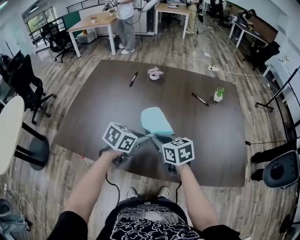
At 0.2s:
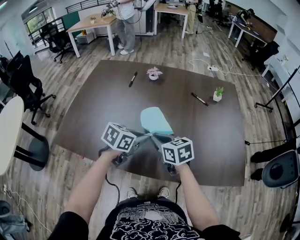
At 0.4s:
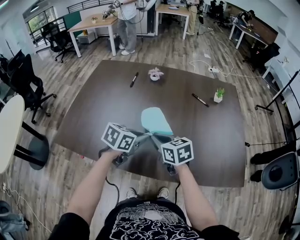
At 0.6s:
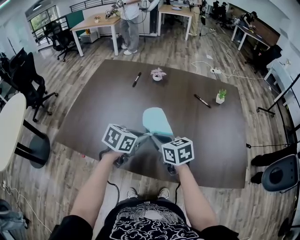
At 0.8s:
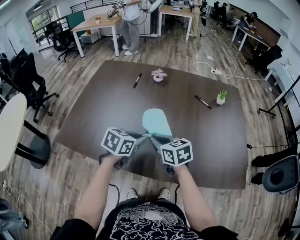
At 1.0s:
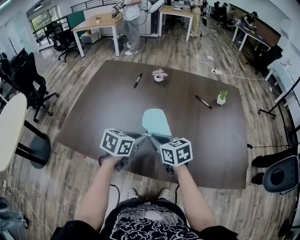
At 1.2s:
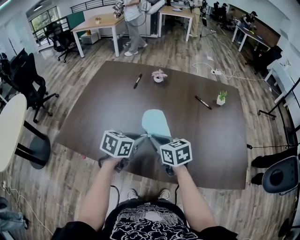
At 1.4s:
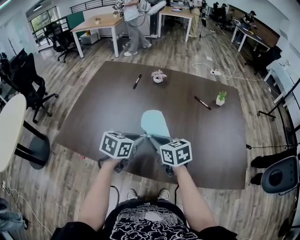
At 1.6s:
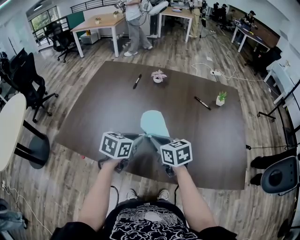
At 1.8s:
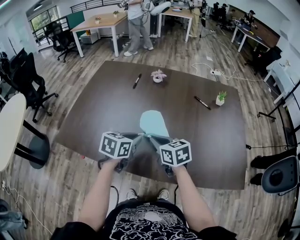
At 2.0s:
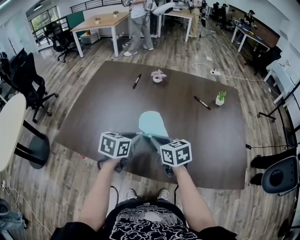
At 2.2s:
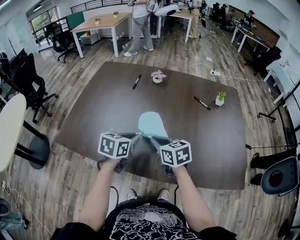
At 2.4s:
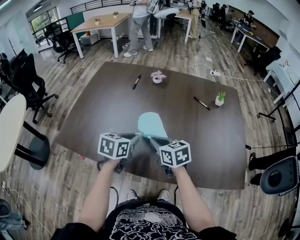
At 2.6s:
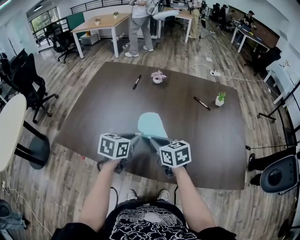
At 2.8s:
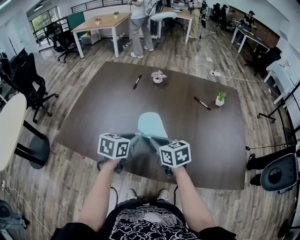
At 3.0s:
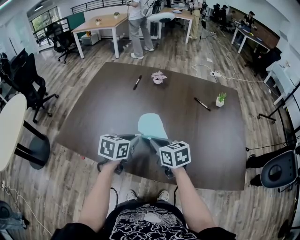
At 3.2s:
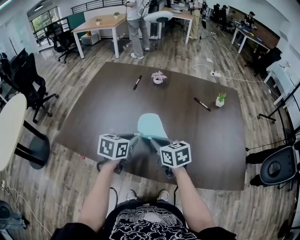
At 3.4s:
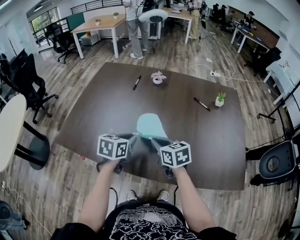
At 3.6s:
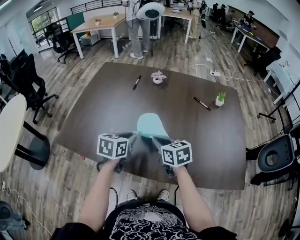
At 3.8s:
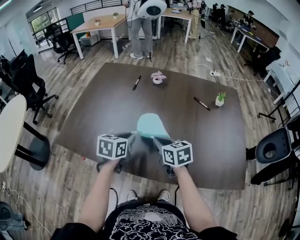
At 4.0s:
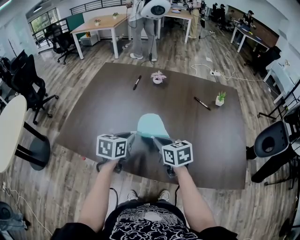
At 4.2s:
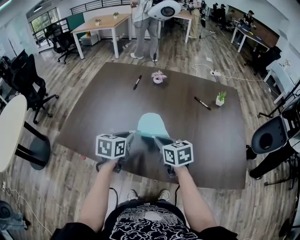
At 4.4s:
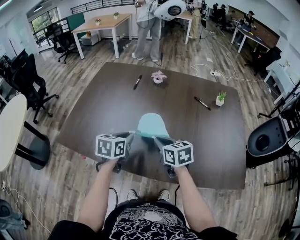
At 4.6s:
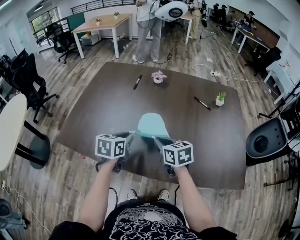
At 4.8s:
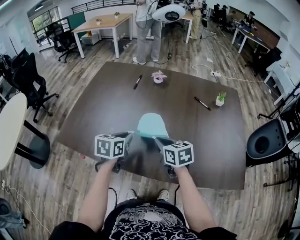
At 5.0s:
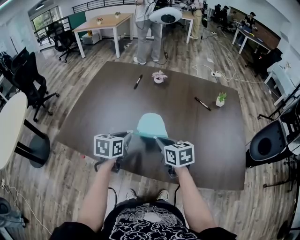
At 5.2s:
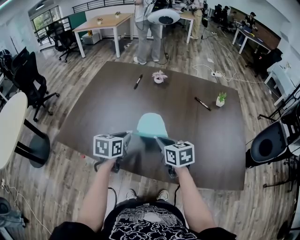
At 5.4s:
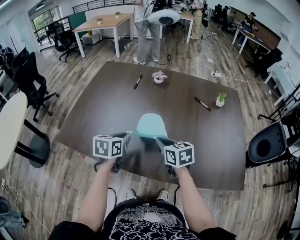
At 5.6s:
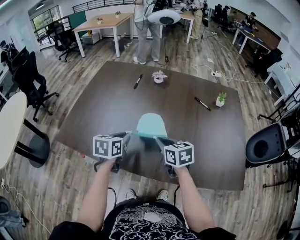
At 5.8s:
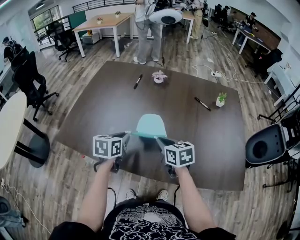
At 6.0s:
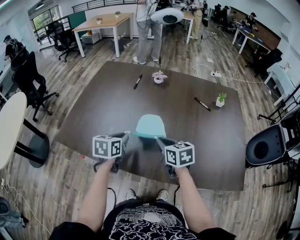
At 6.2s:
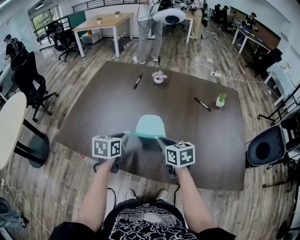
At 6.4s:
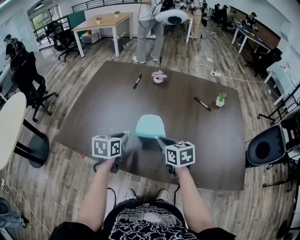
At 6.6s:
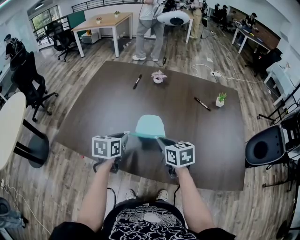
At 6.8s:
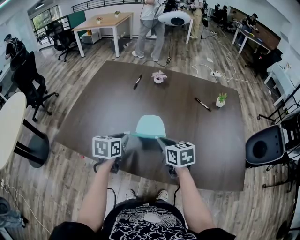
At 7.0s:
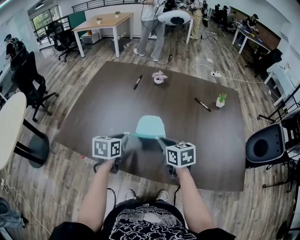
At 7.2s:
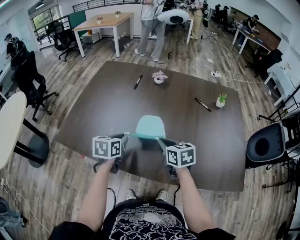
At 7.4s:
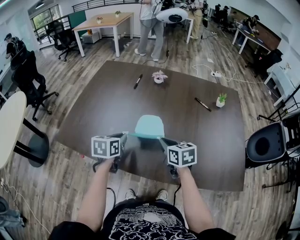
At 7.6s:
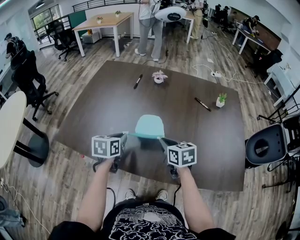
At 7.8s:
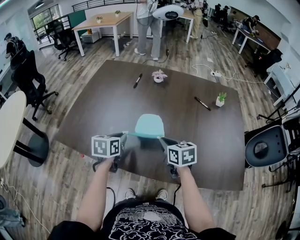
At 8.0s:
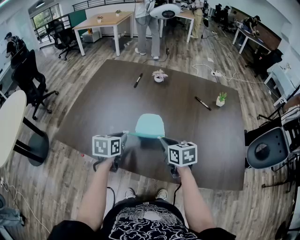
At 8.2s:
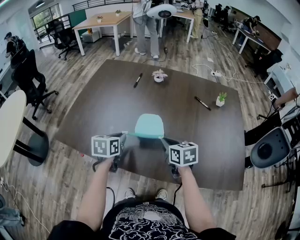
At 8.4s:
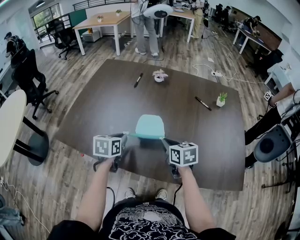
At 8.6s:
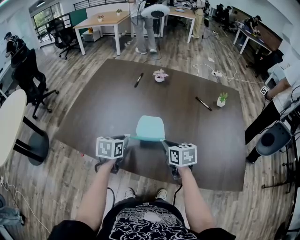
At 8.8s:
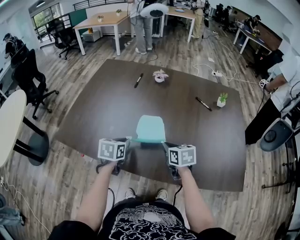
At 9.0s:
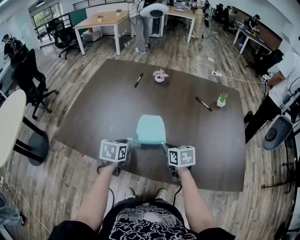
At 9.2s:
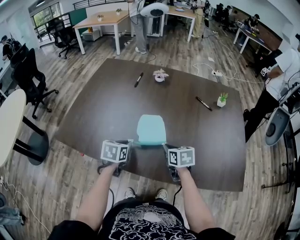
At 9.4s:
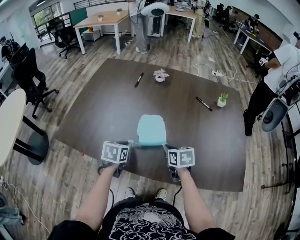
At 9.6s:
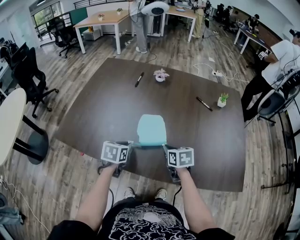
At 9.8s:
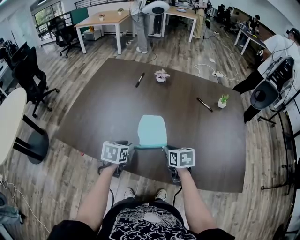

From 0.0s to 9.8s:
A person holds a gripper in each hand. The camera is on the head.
From 0.0s to 1.4s: The grippers stay close to where they were, moving slightly.
From 1.4s to 4.2s: The grippers move only a little.
From 4.2s to 8.4s: The grippers stay close to where they were, moving slightly.
From 8.4s to 9.8s: The left gripper moves about 5 cm, and opens. The right gripper is displaced downward by roughly 5 cm.

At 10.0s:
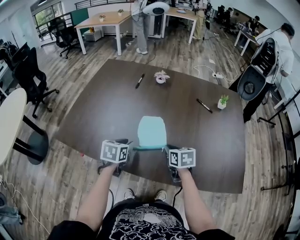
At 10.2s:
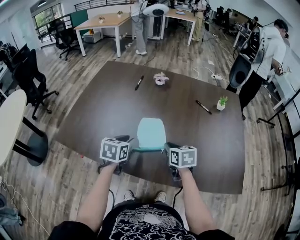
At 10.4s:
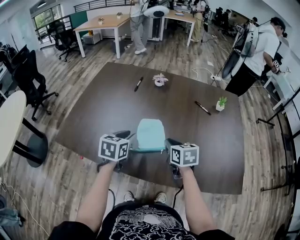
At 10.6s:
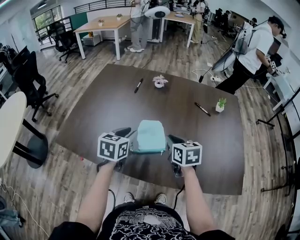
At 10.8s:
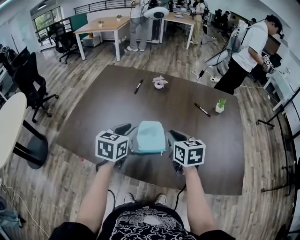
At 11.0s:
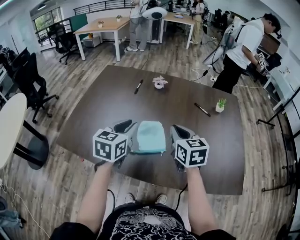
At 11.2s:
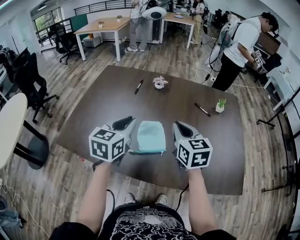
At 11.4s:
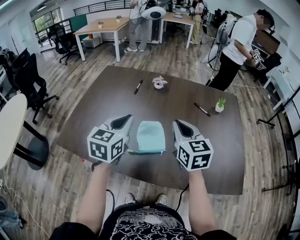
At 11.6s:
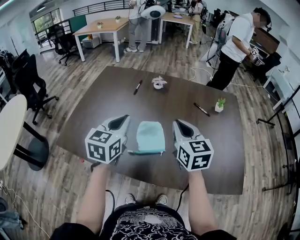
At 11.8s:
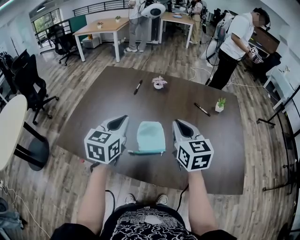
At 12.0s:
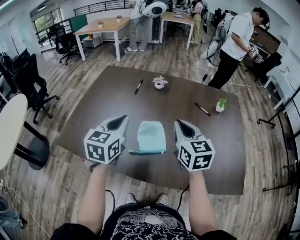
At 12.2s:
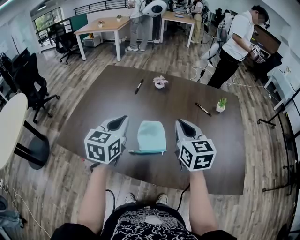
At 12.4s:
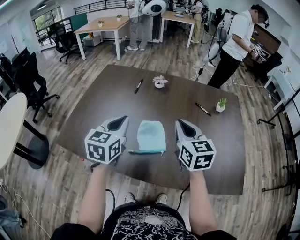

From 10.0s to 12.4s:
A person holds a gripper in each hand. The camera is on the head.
From 10.0s to 11.2s: Both grippers travel together upward, approximately 20 cm. The right gripper rotates roughly 30 degrees. Meanwhile the left gripper turns by some 30 degrees.
From 11.2s to 12.4s: The grippers stay close to where they were, moving slightly.

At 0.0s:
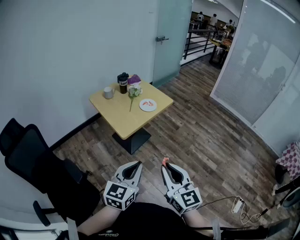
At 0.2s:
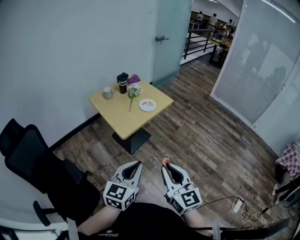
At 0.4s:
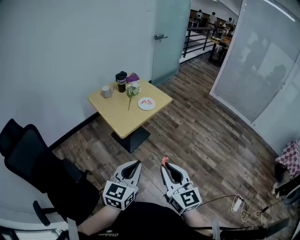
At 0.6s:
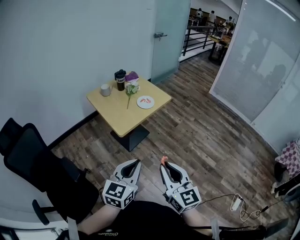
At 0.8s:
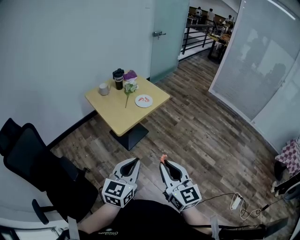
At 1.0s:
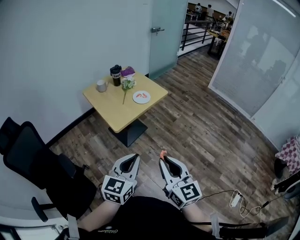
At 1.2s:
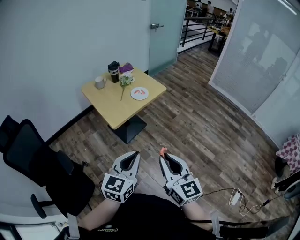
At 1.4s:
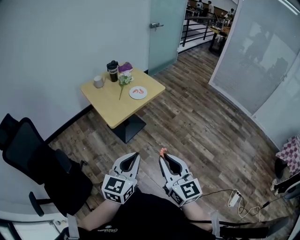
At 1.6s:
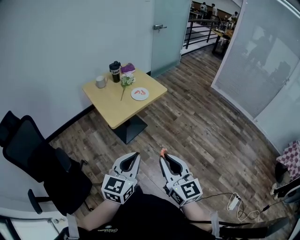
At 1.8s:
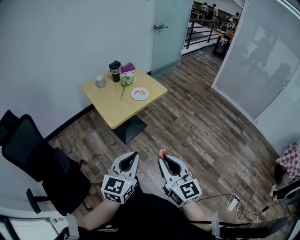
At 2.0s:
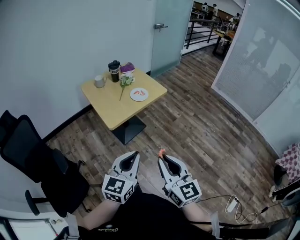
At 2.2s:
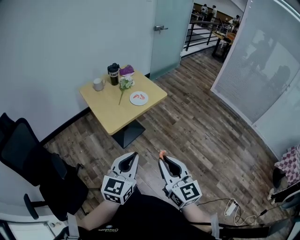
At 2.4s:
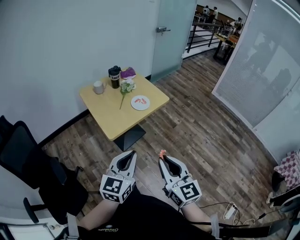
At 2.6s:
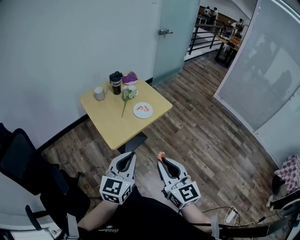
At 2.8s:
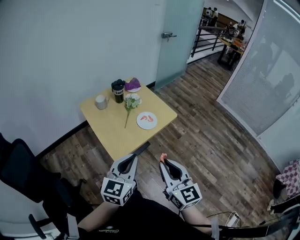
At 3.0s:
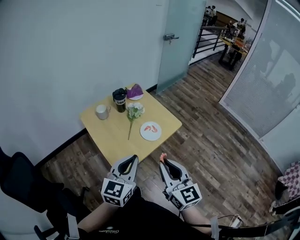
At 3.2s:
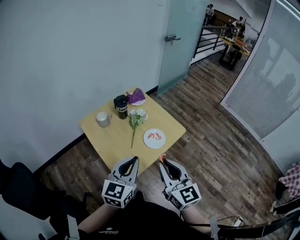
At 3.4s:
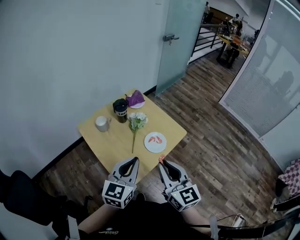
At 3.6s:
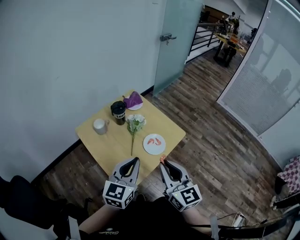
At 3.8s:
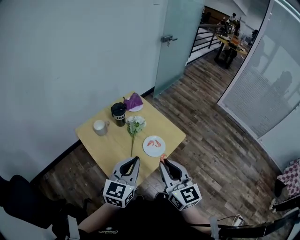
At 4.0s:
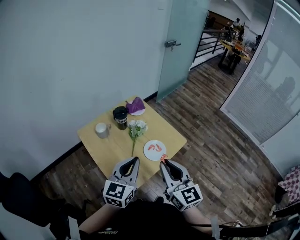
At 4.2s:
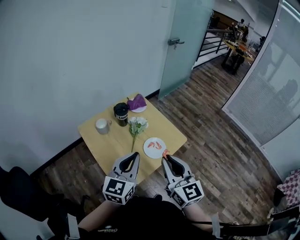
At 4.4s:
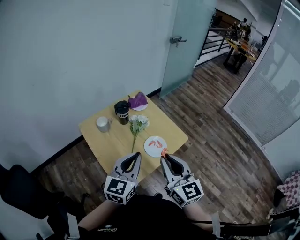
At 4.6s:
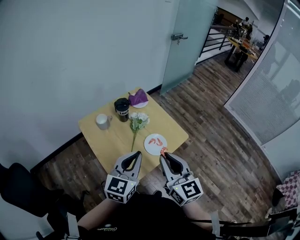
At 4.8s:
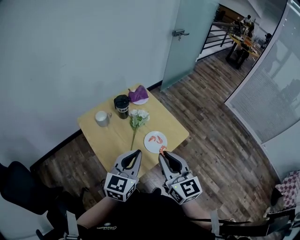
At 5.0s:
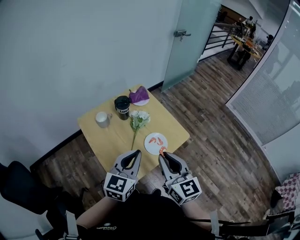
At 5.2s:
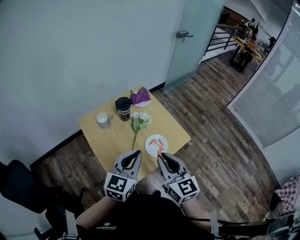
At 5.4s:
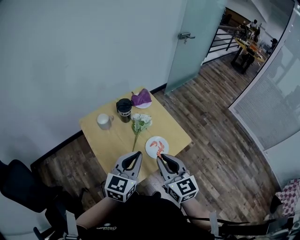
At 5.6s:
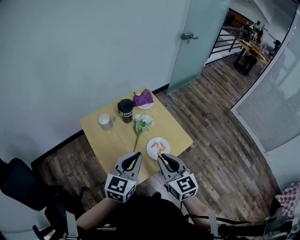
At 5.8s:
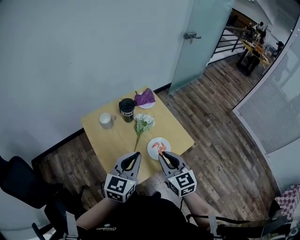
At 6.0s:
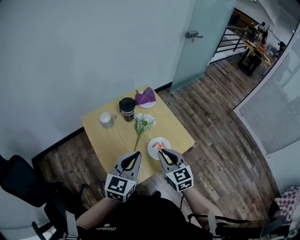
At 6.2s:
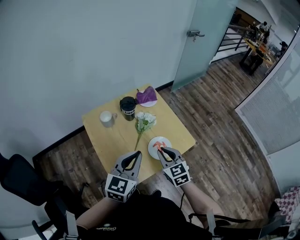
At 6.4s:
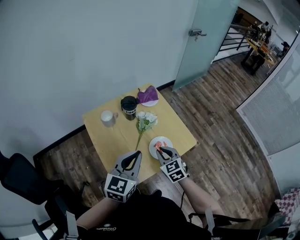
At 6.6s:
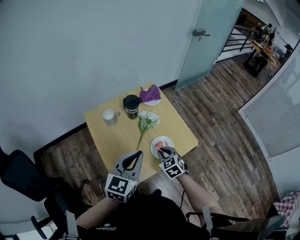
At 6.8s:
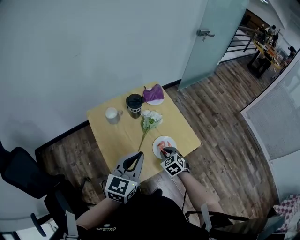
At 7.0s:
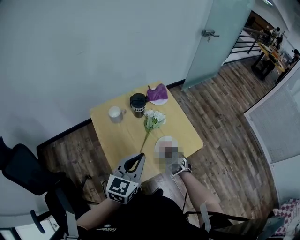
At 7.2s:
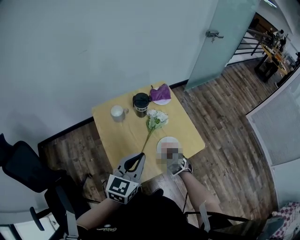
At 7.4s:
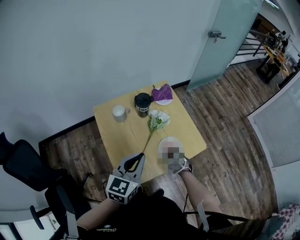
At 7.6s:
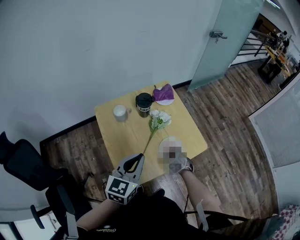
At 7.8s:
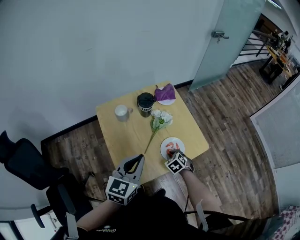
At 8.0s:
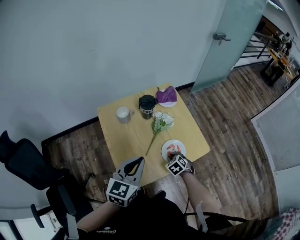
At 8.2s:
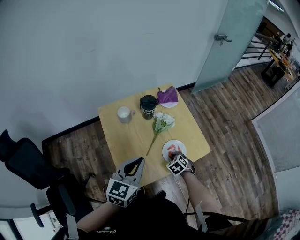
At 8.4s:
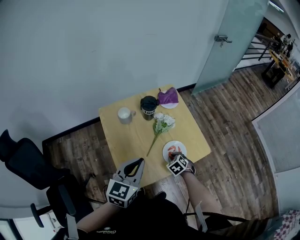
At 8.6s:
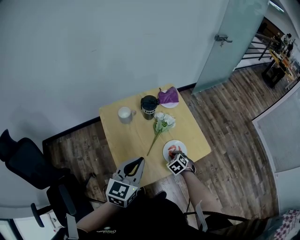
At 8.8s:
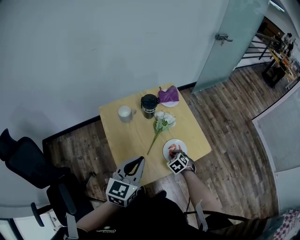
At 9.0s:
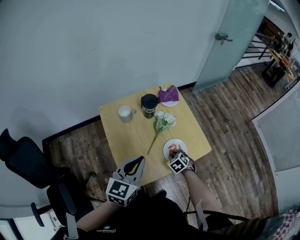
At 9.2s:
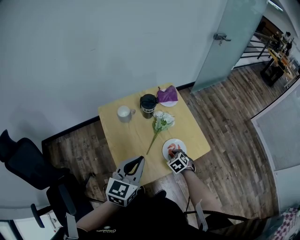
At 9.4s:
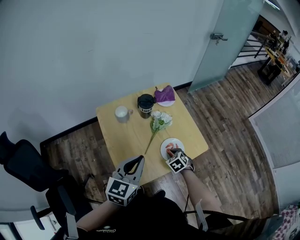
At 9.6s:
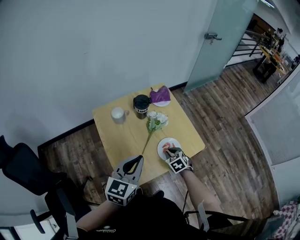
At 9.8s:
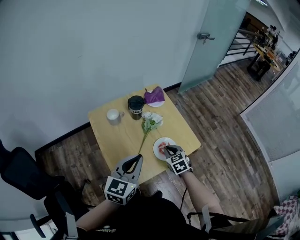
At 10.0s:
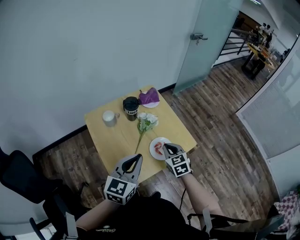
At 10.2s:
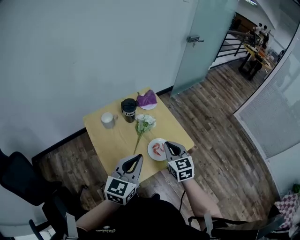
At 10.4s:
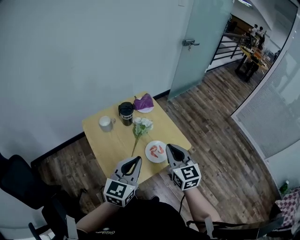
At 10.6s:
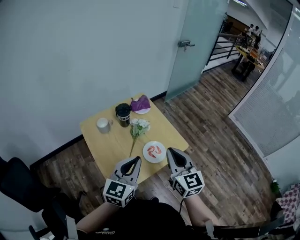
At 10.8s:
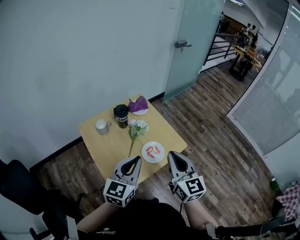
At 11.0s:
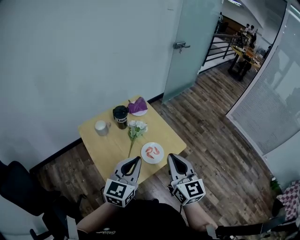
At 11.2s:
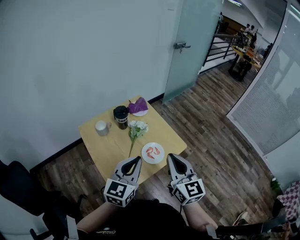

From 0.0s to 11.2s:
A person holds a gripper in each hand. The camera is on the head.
From 0.0s to 1.6s: Both grippers move to the right, some 10 cm.
From 1.6s to 3.2s: The two grippers travel together, forward, roughly 40 cm.
From 3.2s to 4.8s: The two grippers go approximately 10 cm forward.
From 4.8s to 6.4s: The right gripper goes about 20 cm downward and forward, and tilts its fingers approximately 30 degrees downward.
From 6.4s to 8.0s: The right gripper moves downward, some 15 cm, and turns by roughly 30 degrees.
From 8.0s to 9.6s: The grippers make only small movements.
From 9.6s to 11.2s: The right gripper shifts approximately 30 cm upward, and angles its fingers upward, by approximately 50 degrees. The left gripper goes roughly 5 cm to the right.

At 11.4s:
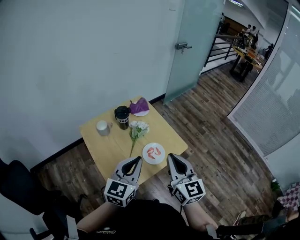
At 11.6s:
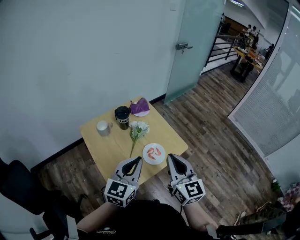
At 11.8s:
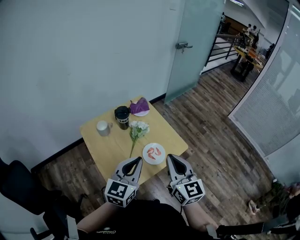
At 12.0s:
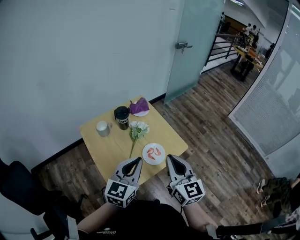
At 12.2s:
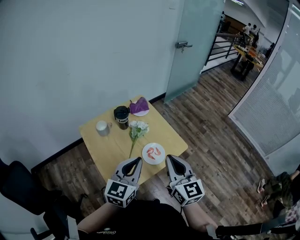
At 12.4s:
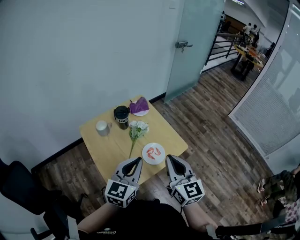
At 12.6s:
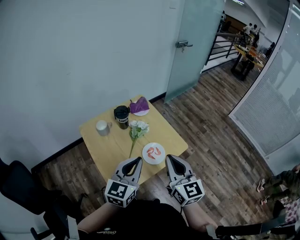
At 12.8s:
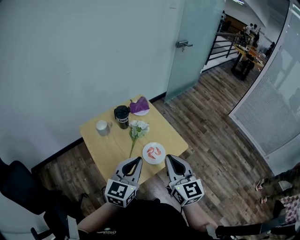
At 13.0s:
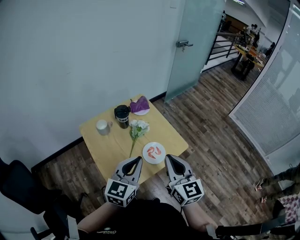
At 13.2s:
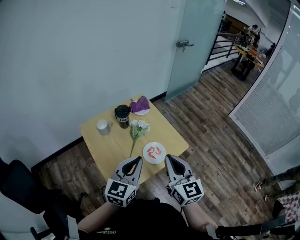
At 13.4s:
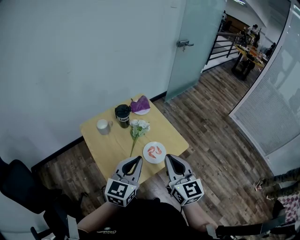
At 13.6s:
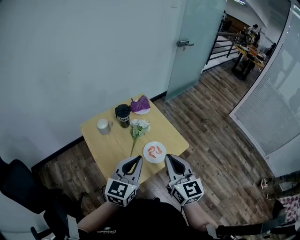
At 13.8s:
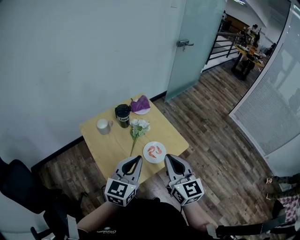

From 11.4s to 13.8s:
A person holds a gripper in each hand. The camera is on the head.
From 11.4s to 12.6s: Both grippers stay put.
From 12.6s to 13.8s: Both grippers stay about where they are.
